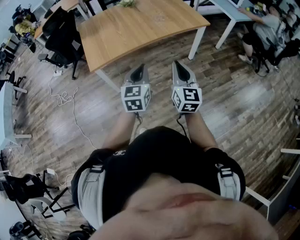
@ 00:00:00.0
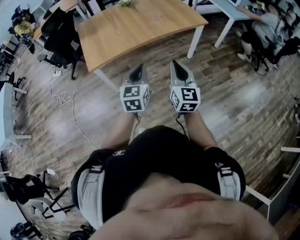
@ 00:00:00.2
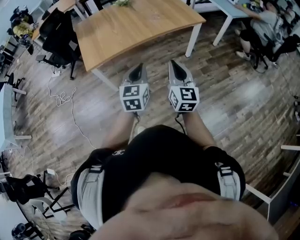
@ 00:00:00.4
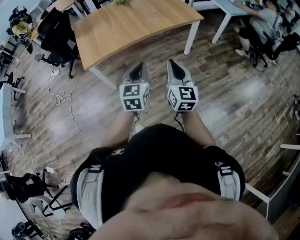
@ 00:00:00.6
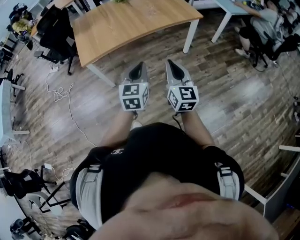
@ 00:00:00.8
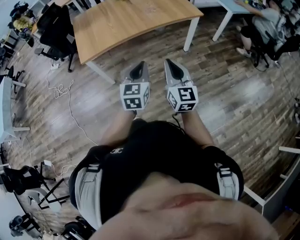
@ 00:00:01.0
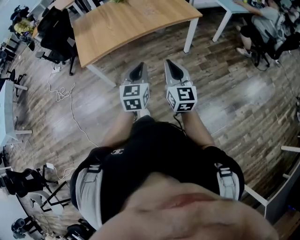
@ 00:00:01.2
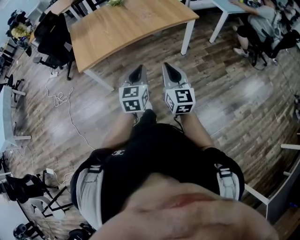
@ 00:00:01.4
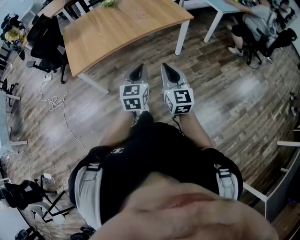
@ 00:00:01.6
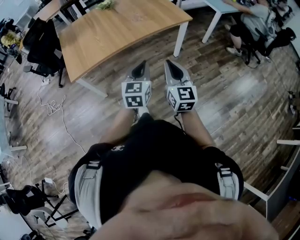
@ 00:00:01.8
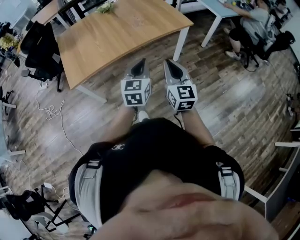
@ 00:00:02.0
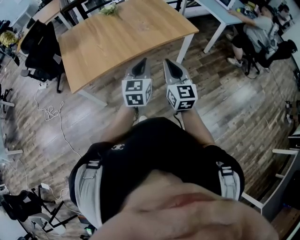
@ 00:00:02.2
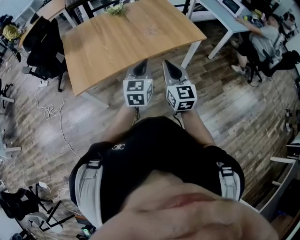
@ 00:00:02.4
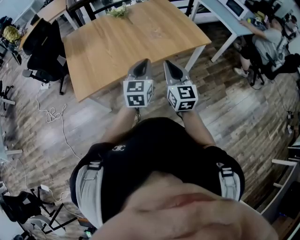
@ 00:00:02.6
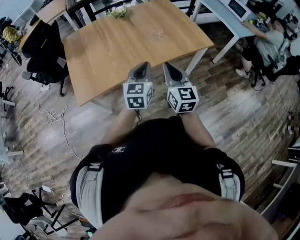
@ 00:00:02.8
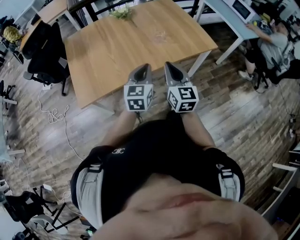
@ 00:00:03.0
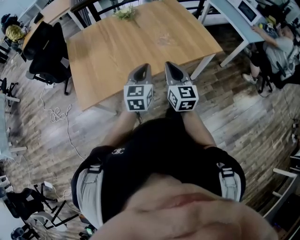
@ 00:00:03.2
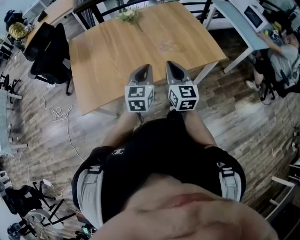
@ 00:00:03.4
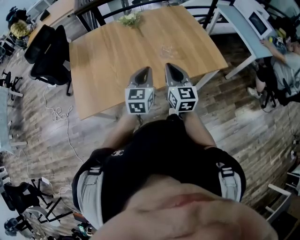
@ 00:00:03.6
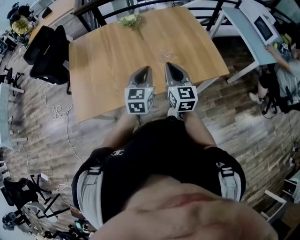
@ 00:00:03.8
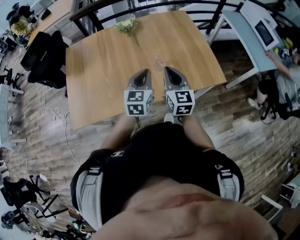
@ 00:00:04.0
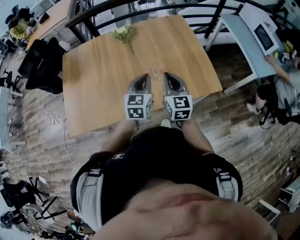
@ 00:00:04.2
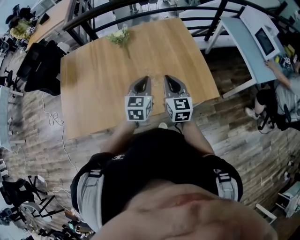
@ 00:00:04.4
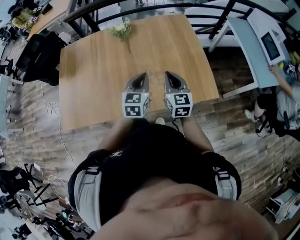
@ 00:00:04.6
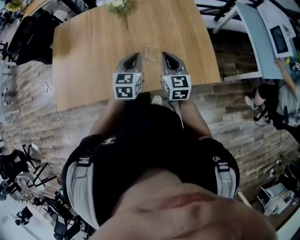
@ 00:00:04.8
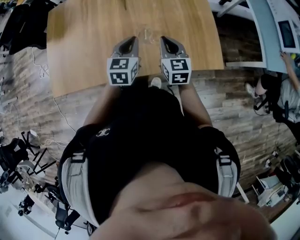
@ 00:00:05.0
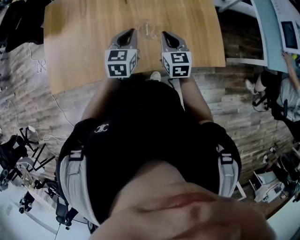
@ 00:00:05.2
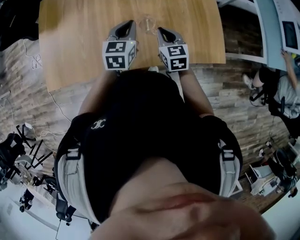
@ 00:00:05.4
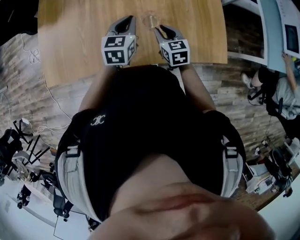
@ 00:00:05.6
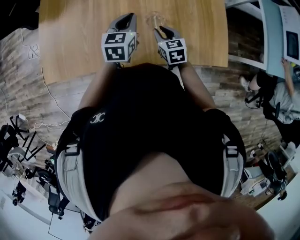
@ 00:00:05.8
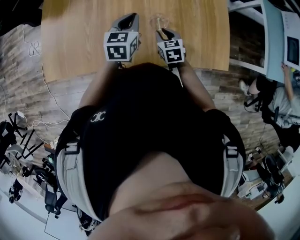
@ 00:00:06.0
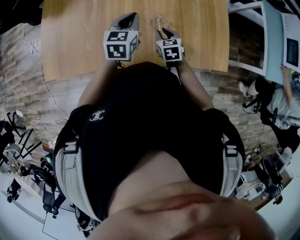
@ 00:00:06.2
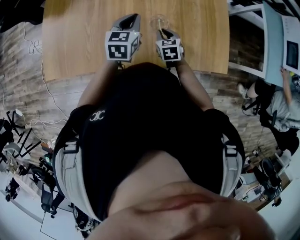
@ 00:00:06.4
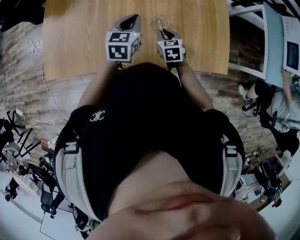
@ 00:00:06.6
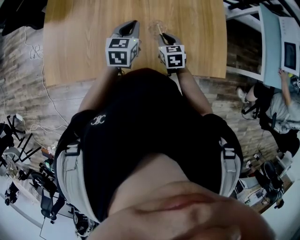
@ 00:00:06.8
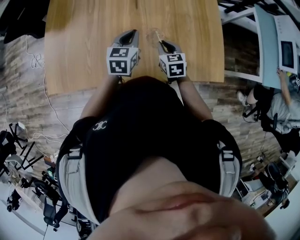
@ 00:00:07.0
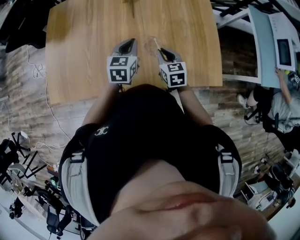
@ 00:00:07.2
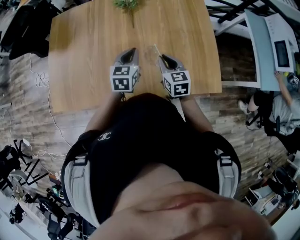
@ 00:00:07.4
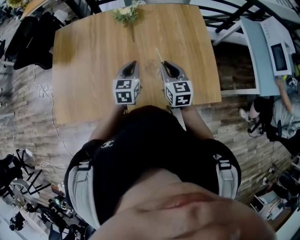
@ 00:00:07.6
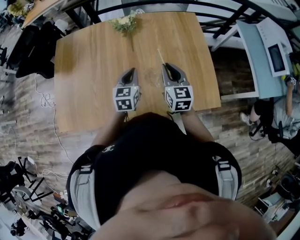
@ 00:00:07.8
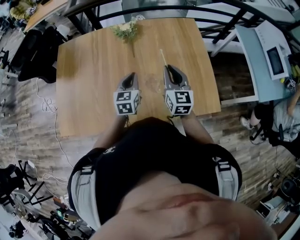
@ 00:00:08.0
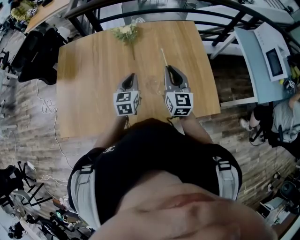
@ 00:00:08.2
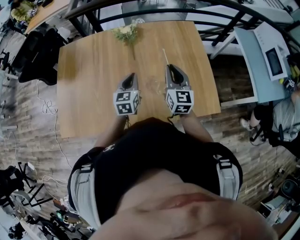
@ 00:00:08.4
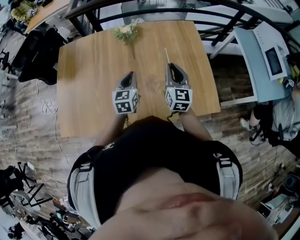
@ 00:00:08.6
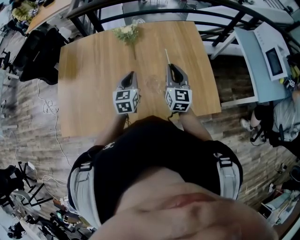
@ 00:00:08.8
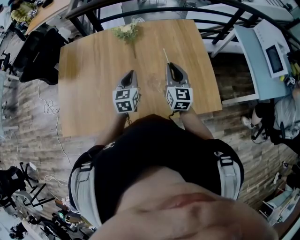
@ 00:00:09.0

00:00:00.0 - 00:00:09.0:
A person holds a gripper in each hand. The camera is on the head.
00:00:00.0 - 00:00:01.6: The right gripper travels to the right by some 5 cm. Meanwhile the left gripper moves to the right, about 10 cm.
00:00:01.6 - 00:00:03.0: Both grippers travel together forward, some 30 cm.
00:00:03.0 - 00:00:04.4: Both grippers travel together forward and to the right, some 35 cm.
00:00:04.4 - 00:00:06.0: The right gripper is displaced downward and to the left by roughly 25 cm, tips its fingers downward by roughly 30 degrees, and opens its fingers, while the left gripper moves to the left, forward and downward, roughly 15 cm.
00:00:06.0 - 00:00:07.6: The right gripper shifts approximately 15 cm upward, and swivels about 20 degrees.
00:00:07.6 - 00:00:09.0: The right gripper goes roughly 5 cm upward, and changes its angle by approximately 20 degrees.

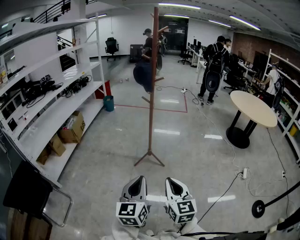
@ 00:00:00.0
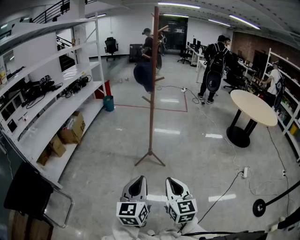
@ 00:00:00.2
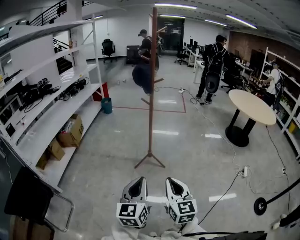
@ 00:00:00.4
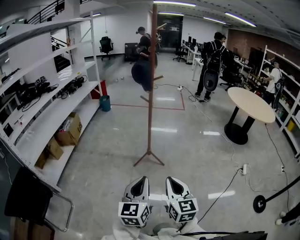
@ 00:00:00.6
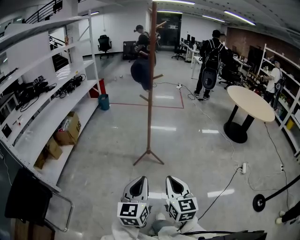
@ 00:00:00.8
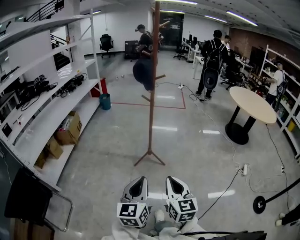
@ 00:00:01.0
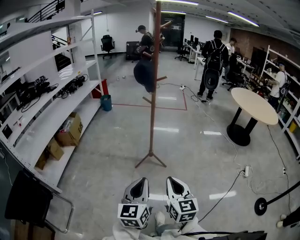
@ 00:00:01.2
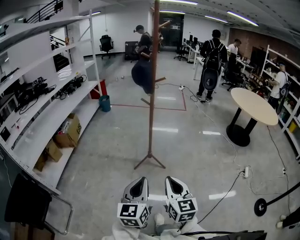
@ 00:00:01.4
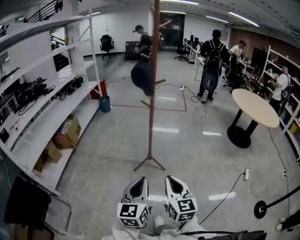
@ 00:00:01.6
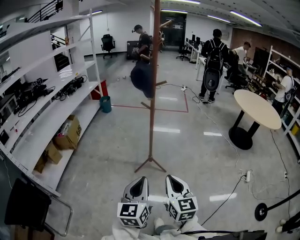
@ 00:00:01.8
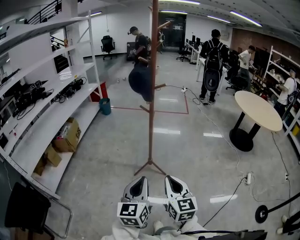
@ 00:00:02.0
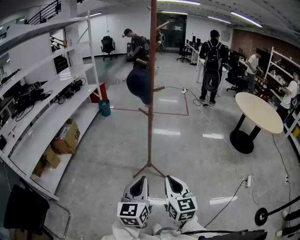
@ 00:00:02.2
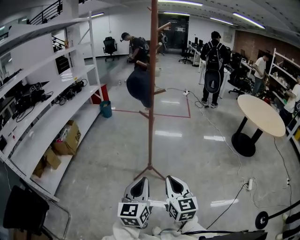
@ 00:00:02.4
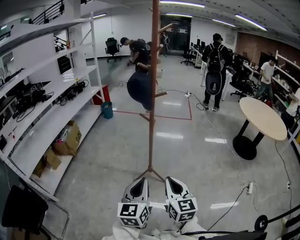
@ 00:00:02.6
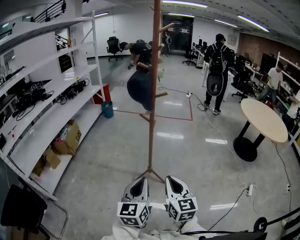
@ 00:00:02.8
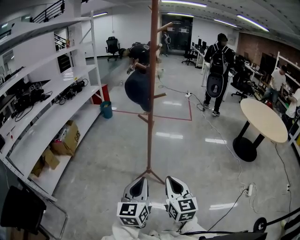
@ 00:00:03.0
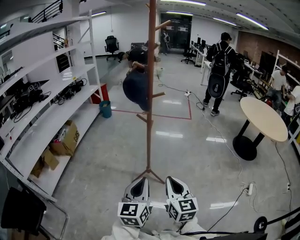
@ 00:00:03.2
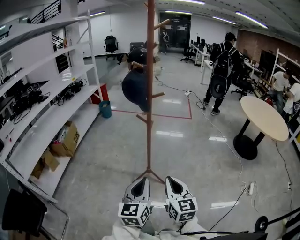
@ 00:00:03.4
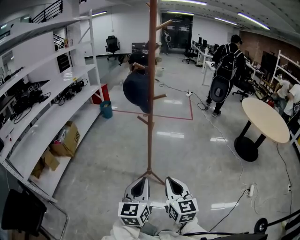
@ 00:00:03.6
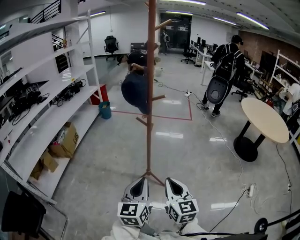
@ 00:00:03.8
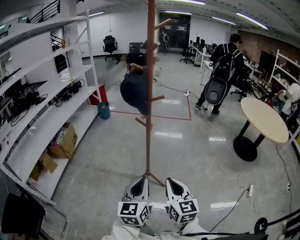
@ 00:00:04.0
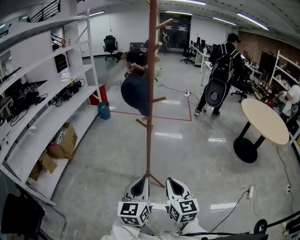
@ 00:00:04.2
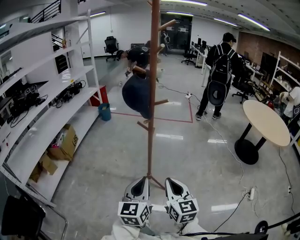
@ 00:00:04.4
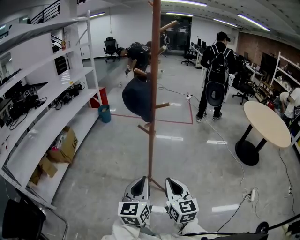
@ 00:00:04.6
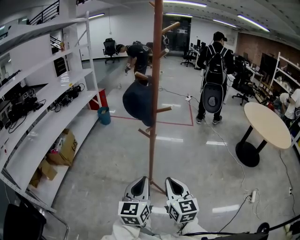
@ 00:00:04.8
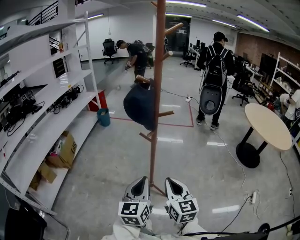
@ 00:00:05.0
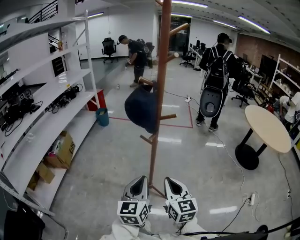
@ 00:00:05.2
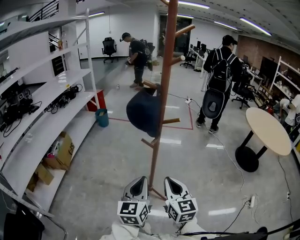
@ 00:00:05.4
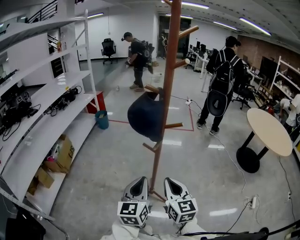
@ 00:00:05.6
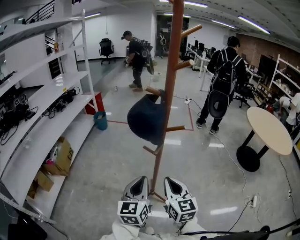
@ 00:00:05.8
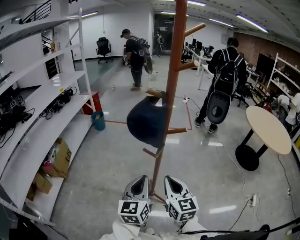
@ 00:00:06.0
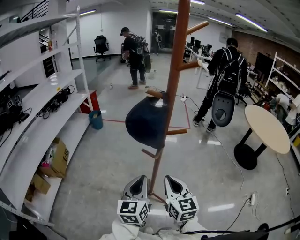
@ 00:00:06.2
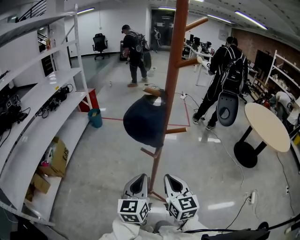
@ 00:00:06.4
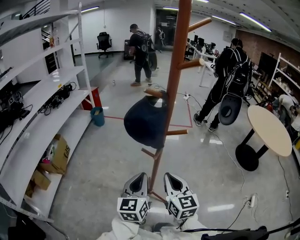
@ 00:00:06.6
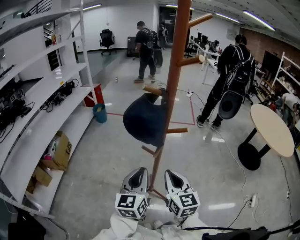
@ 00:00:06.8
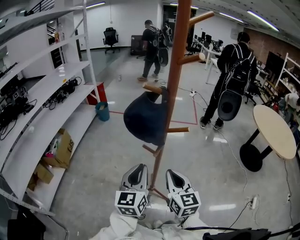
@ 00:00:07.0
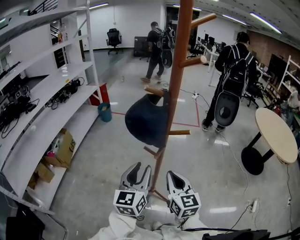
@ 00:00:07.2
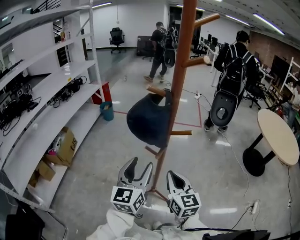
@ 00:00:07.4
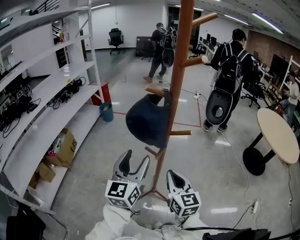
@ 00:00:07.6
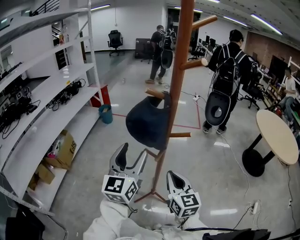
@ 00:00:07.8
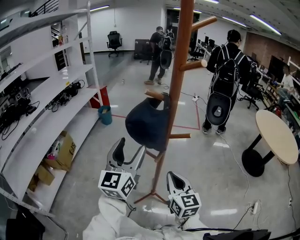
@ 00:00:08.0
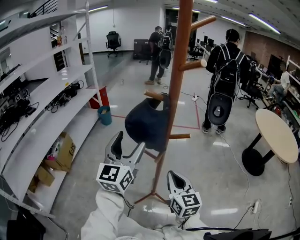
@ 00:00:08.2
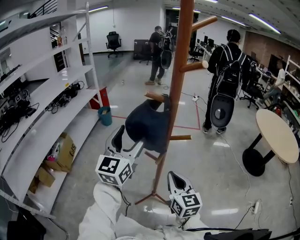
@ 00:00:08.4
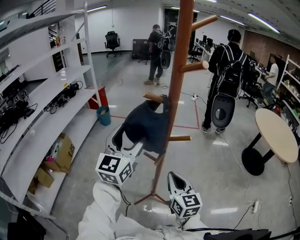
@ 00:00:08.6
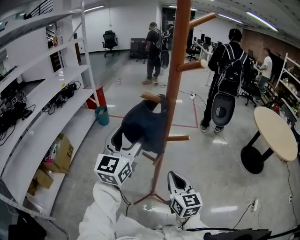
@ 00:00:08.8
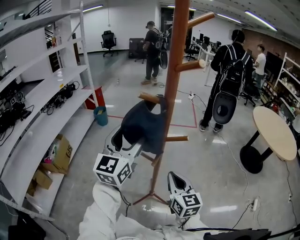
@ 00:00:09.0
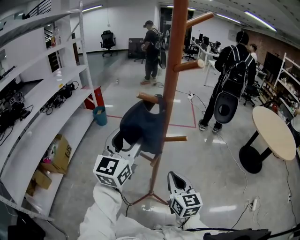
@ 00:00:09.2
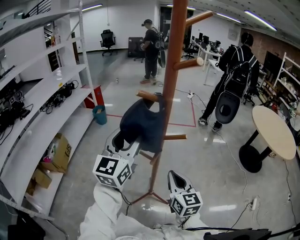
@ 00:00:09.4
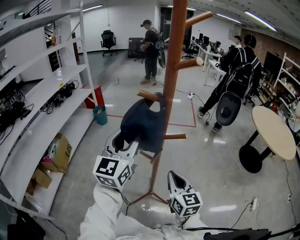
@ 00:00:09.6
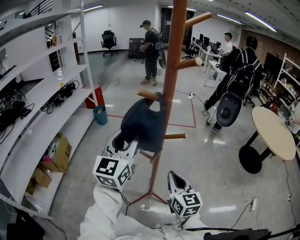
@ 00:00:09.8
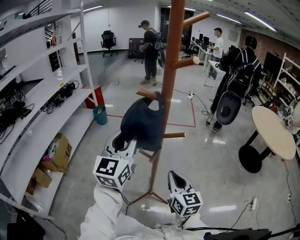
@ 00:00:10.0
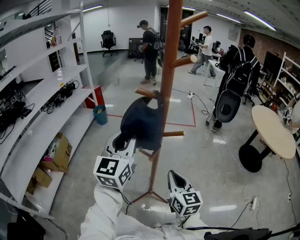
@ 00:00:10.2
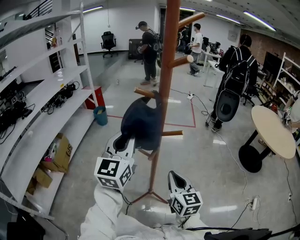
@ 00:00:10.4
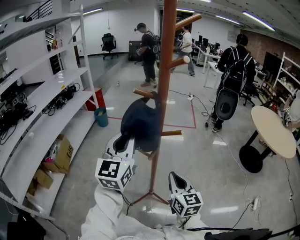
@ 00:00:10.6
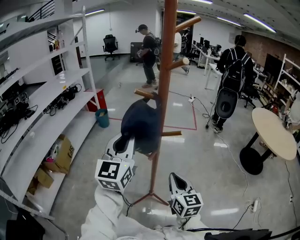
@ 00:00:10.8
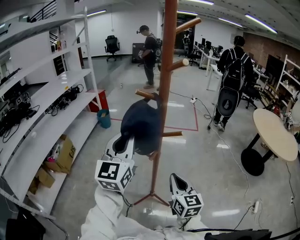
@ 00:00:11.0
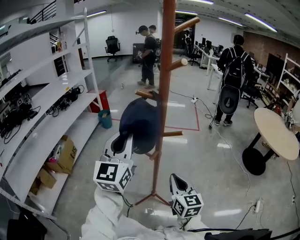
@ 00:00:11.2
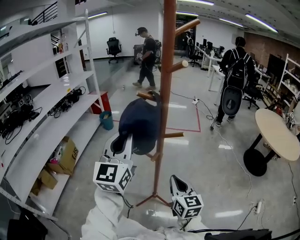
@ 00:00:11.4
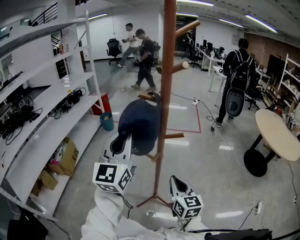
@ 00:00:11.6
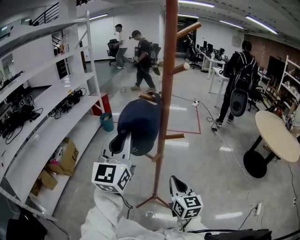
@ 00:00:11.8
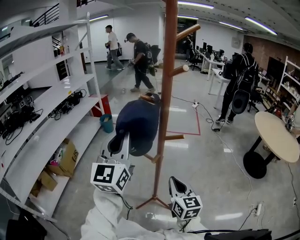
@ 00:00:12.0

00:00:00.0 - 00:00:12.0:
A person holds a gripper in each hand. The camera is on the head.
00:00:00.0 - 00:00:01.6: The grippers both shift forward by approximately 10 cm.
00:00:01.6 - 00:00:03.0: The two grippers go approximately 15 cm forward.
00:00:03.0 - 00:00:04.4: The two grippers go approximately 5 cm forward.
00:00:04.4 - 00:00:06.0: Both grippers travel together forward, roughly 20 cm.
00:00:06.0 - 00:00:07.6: The left gripper shifts roughly 10 cm upward and forward, and opens up.
00:00:07.6 - 00:00:09.0: The left gripper goes about 10 cm upward and forward.
00:00:09.0 - 00:00:10.4: The left gripper closes.
00:00:10.4 - 00:00:12.0: The left gripper goes about 5 cm upward.

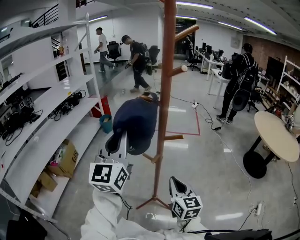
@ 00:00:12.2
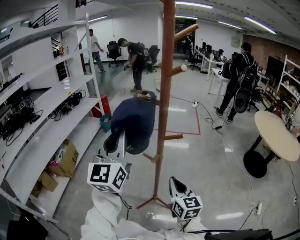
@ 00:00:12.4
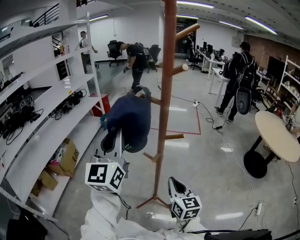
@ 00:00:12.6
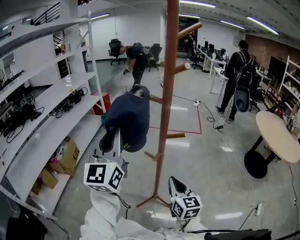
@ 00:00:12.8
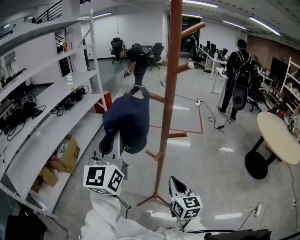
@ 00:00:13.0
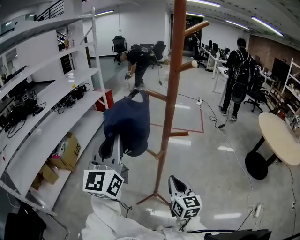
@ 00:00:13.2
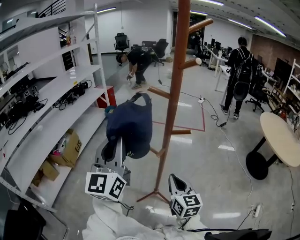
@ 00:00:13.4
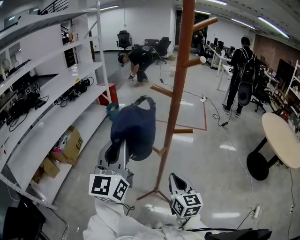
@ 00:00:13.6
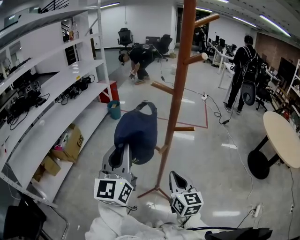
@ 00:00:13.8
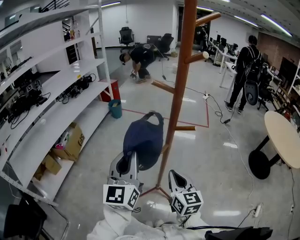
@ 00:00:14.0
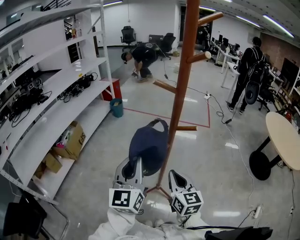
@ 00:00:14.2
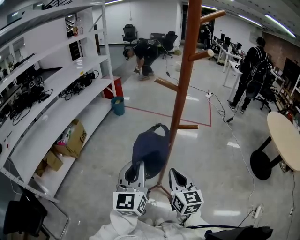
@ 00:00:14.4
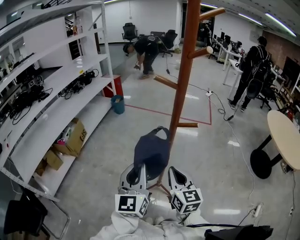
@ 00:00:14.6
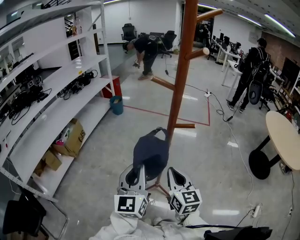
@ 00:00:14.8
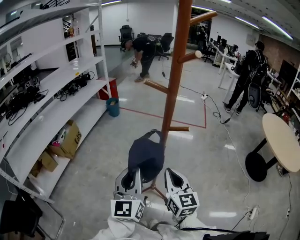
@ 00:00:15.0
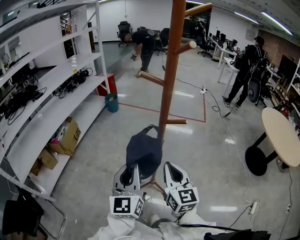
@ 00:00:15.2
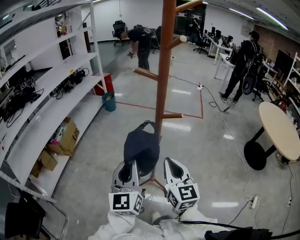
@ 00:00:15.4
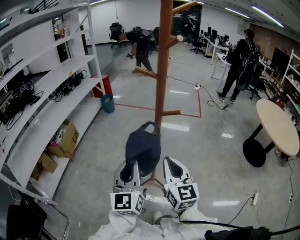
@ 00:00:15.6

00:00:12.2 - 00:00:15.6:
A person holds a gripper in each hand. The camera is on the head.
00:00:12.2 - 00:00:13.8: The left gripper shifts some 5 cm downward.
00:00:13.8 - 00:00:15.6: The left gripper goes roughly 10 cm downward and backward. The right gripper goes some 5 cm upward.
